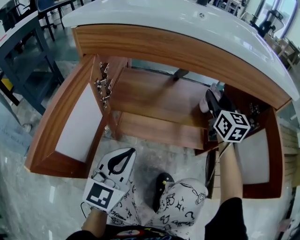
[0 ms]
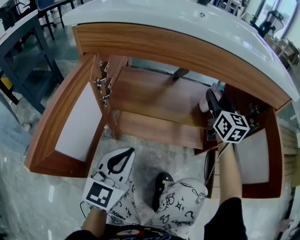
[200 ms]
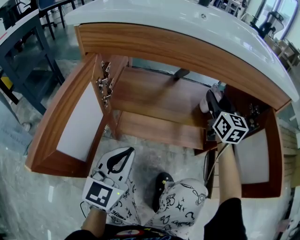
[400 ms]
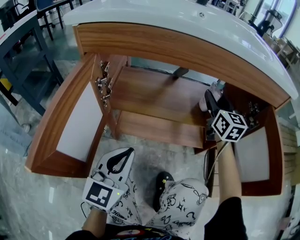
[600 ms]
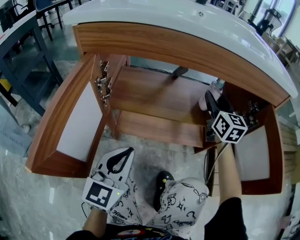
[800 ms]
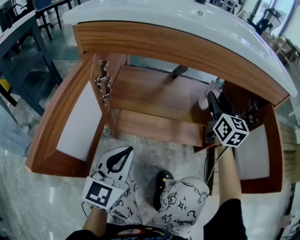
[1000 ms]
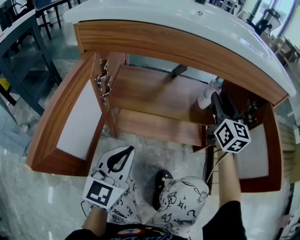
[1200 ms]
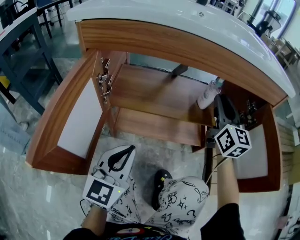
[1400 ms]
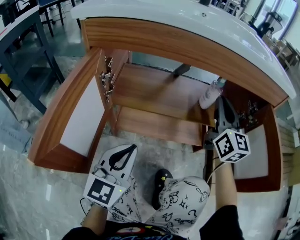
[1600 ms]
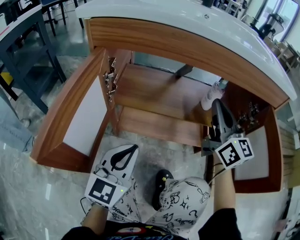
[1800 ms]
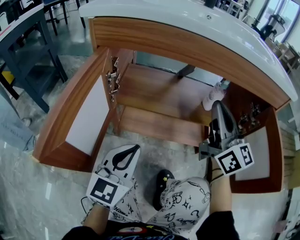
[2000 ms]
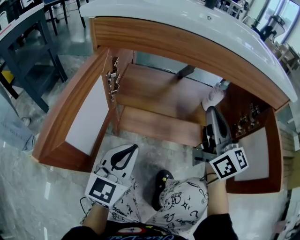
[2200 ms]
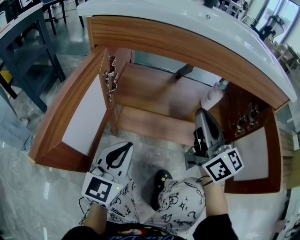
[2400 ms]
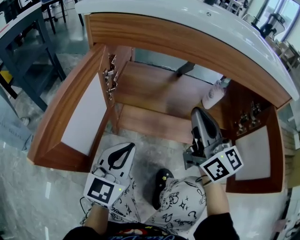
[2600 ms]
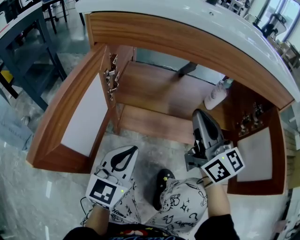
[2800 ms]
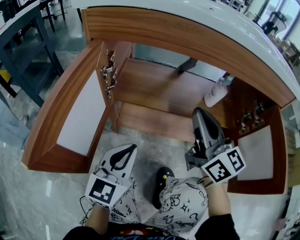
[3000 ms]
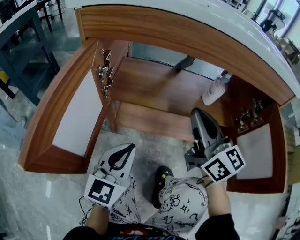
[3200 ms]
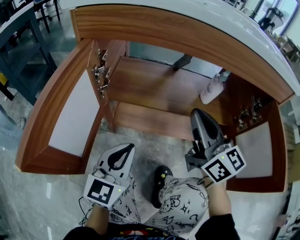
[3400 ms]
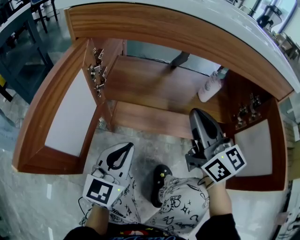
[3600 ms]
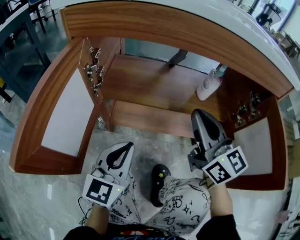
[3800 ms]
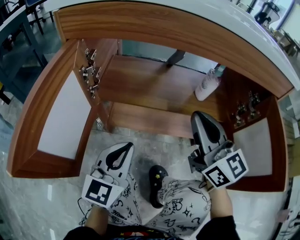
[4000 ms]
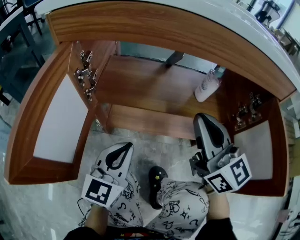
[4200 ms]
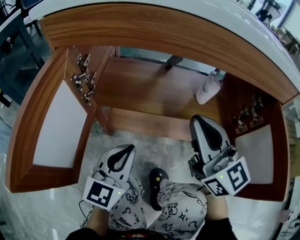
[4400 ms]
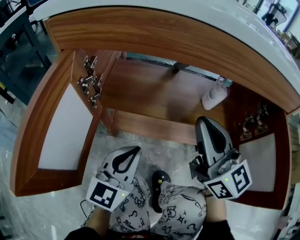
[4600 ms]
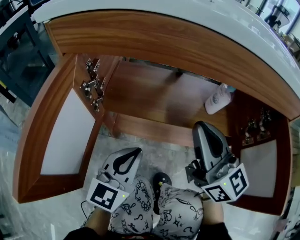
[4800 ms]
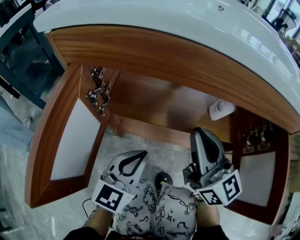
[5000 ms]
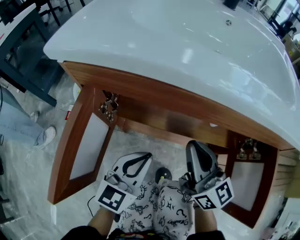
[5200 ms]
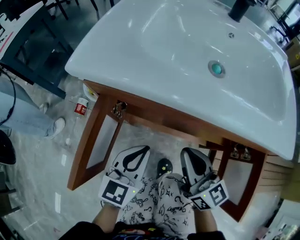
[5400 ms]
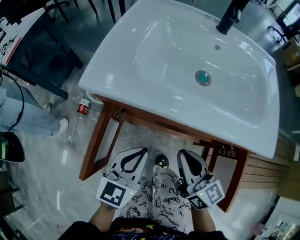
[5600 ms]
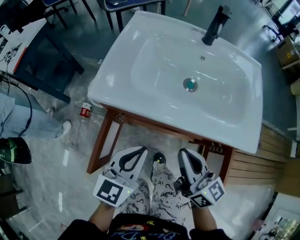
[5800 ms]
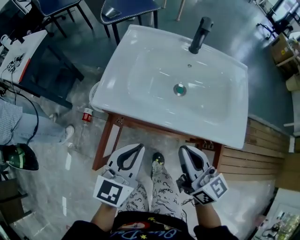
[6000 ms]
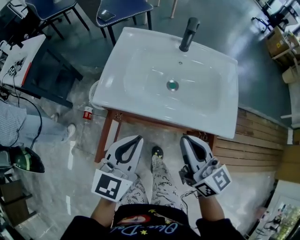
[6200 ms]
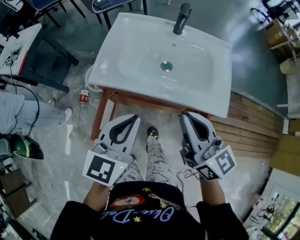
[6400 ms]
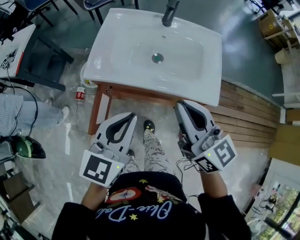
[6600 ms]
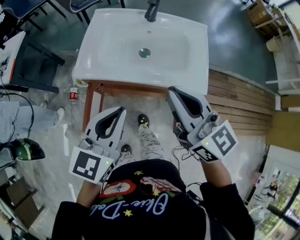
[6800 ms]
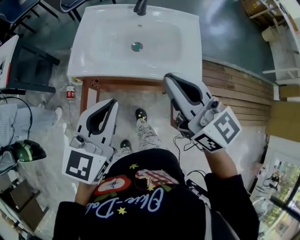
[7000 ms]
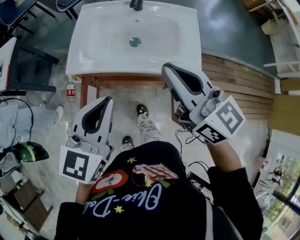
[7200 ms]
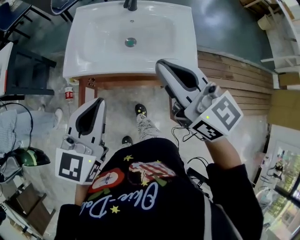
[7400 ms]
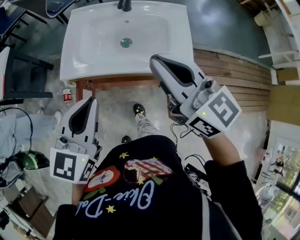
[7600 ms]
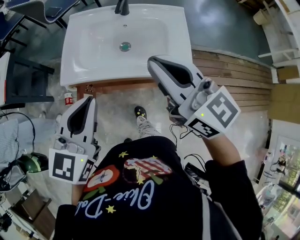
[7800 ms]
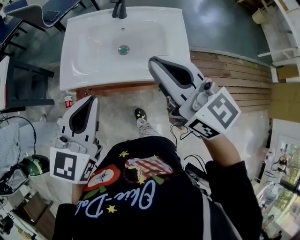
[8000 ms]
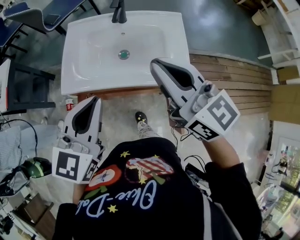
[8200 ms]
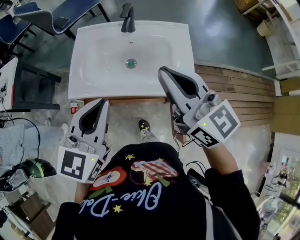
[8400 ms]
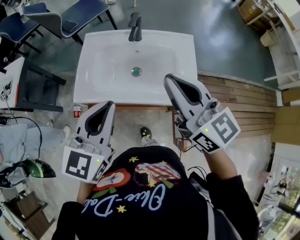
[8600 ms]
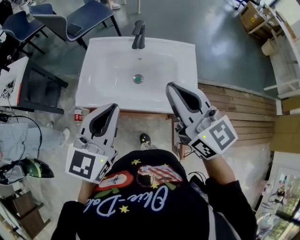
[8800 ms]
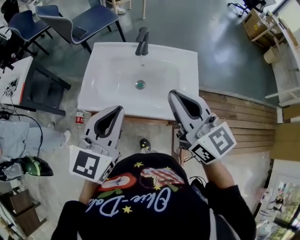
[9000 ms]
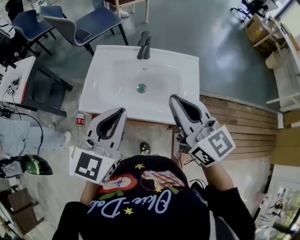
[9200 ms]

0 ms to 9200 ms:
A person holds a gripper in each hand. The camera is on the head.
0 ms to 1600 ms: The right gripper heads backward, covering roughly 10 cm, and closes up.
1600 ms to 3000 ms: The right gripper moves to the left and backward, some 15 cm, and turns by approximately 30 degrees.
3000 ms to 4600 ms: The grippers make only small movements.
4600 ms to 6200 ms: Both grippers travel together upward, roughly 35 cm. The right gripper turns by approximately 20 degrees.
6200 ms to 7600 ms: Both grippers move upward, about 15 cm.
7600 ms to 9200 ms: The right gripper travels forward by roughly 5 cm, while the left gripper travels forward and to the right by roughly 10 cm.

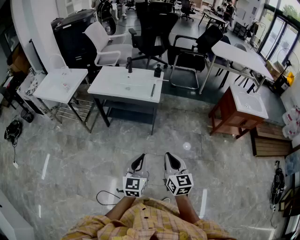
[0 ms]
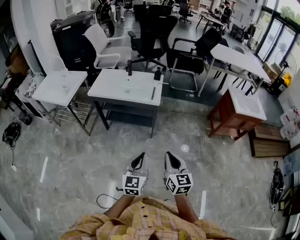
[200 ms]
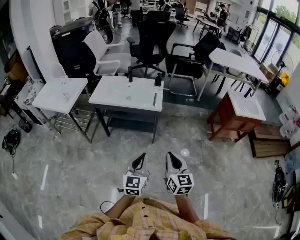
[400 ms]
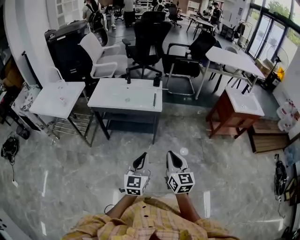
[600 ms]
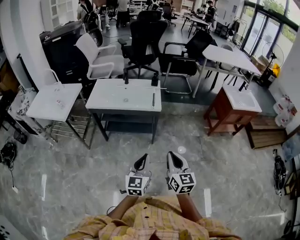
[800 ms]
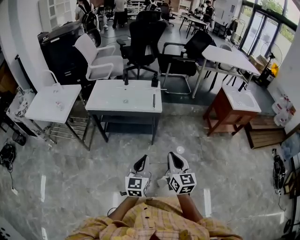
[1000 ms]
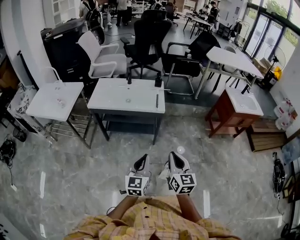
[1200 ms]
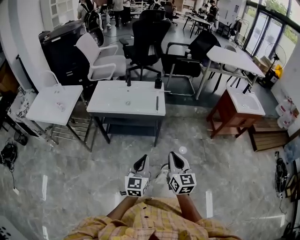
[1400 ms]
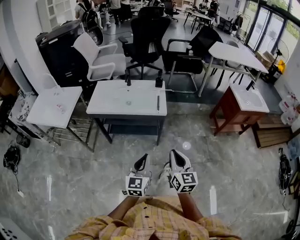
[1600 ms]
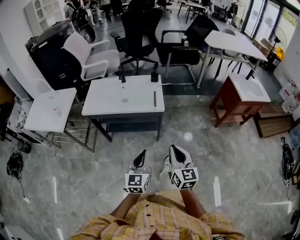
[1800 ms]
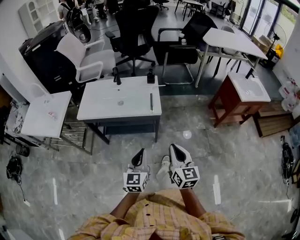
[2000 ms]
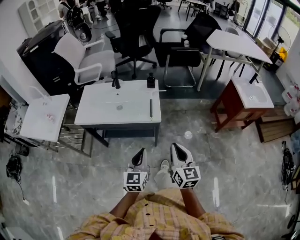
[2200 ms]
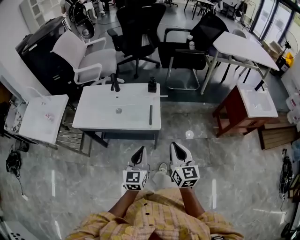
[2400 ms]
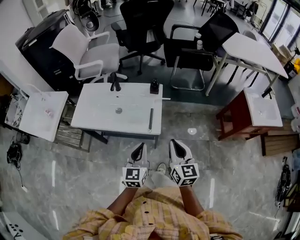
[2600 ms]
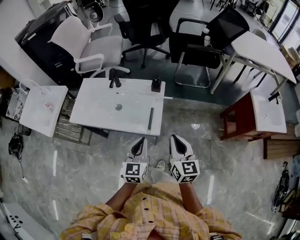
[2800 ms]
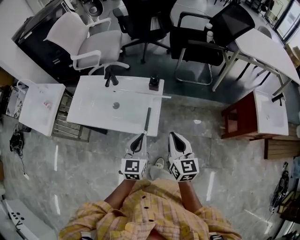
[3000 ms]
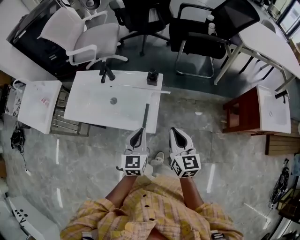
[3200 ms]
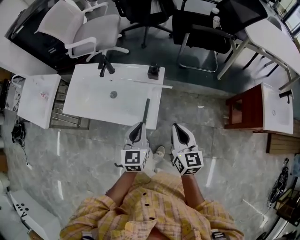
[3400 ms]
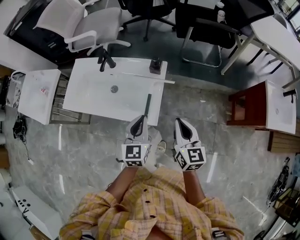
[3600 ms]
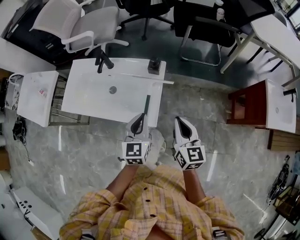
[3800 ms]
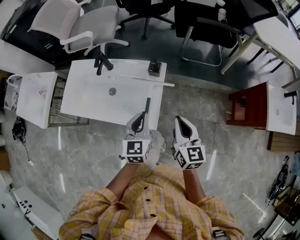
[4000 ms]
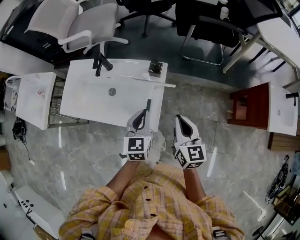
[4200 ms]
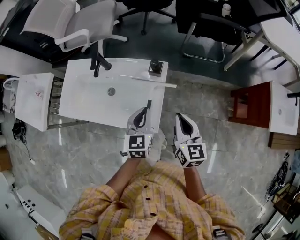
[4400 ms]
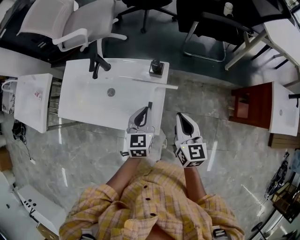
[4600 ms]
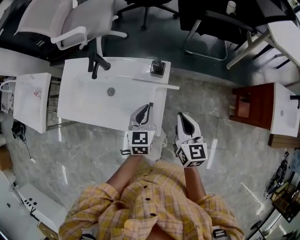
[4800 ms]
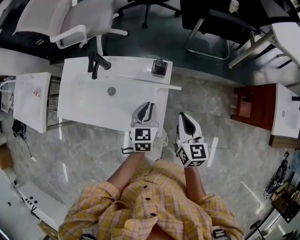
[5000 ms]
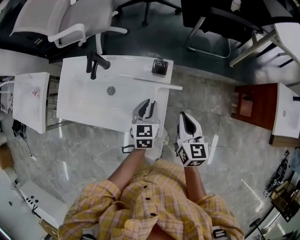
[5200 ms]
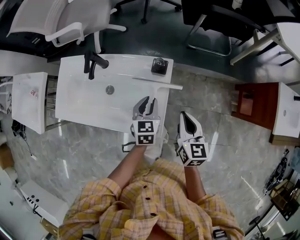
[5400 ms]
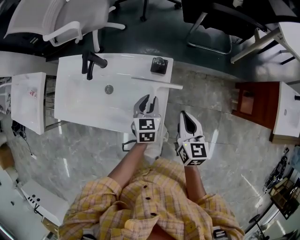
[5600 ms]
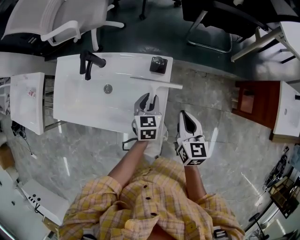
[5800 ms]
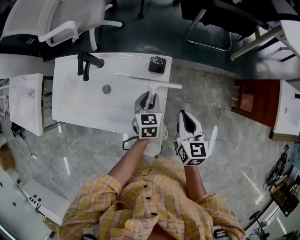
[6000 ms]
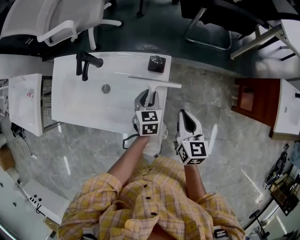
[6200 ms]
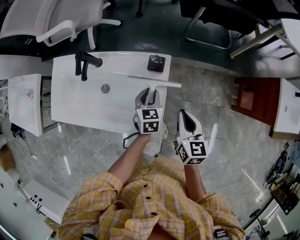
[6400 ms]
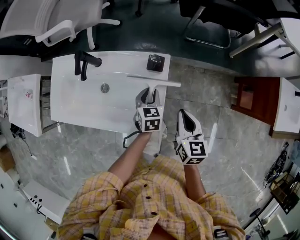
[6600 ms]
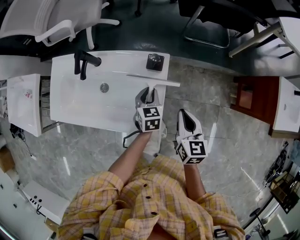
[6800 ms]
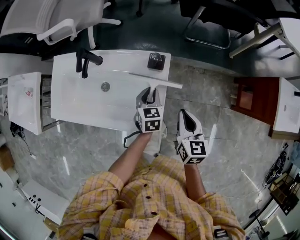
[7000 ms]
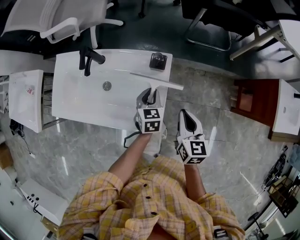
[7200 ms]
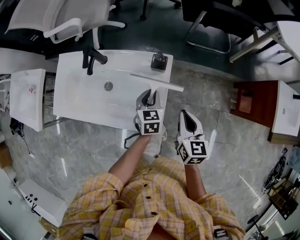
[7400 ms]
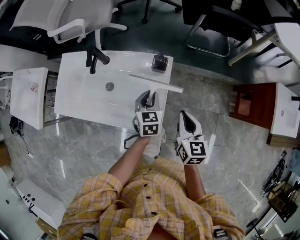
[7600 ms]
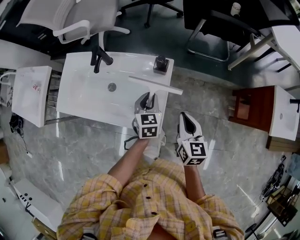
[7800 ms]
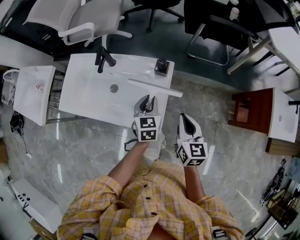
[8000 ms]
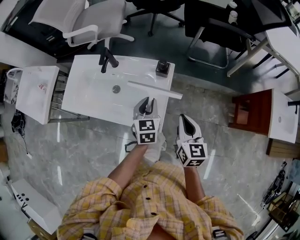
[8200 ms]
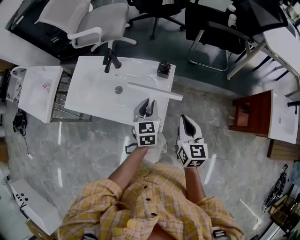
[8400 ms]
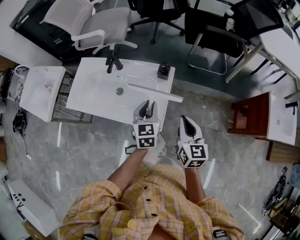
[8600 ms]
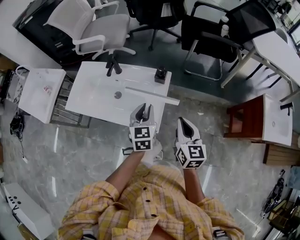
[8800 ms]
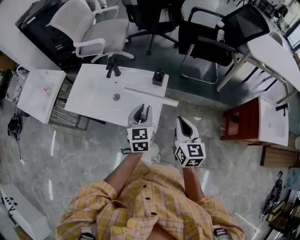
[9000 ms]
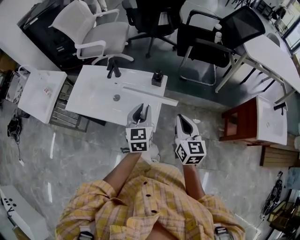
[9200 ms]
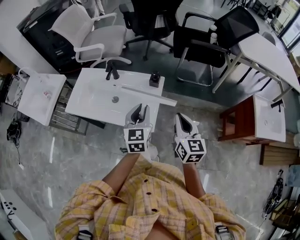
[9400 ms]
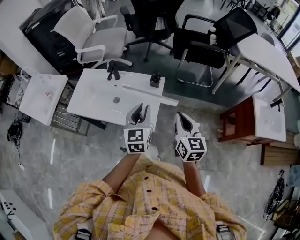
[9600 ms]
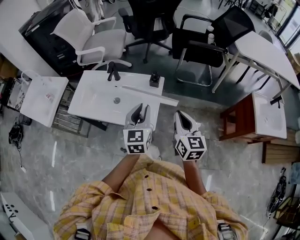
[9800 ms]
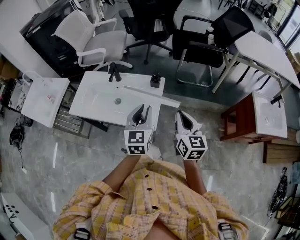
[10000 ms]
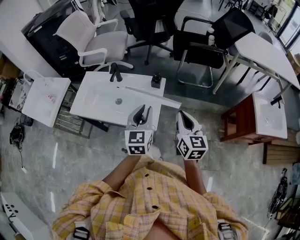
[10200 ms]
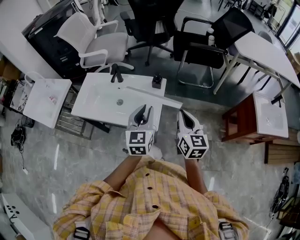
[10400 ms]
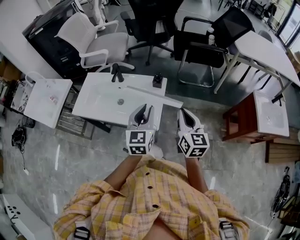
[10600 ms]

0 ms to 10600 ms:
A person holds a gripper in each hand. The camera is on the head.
0 ms to 1600 ms: The two grippers go roughly 15 cm forward and to the left.
1600 ms to 3000 ms: The two grippers travel together, forward, approximately 40 cm.
3000 ms to 4600 ms: The grippers both shift forward and downward by some 15 cm.
4600 ms to 6000 ms: The left gripper shifts roughly 15 cm downward and forward, and opens its fingers; the right gripper moves downward, about 5 cm.
6000 ms to 7600 ms: The grippers make only small movements.
7600 ms to 9000 ms: The grippers both shift upward and backward by about 15 cm.
9000 ms to 10600 ms: The right gripper shifts approximately 5 cm upward; the left gripper travels upward and backward by roughly 10 cm.

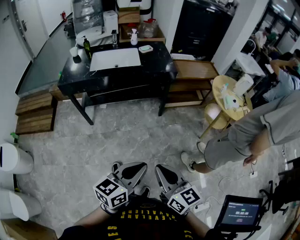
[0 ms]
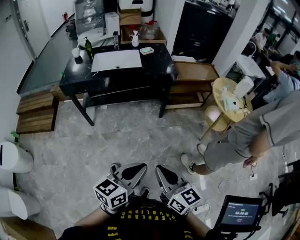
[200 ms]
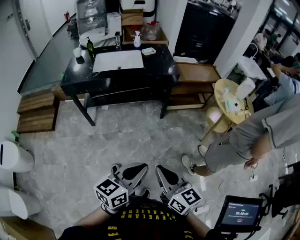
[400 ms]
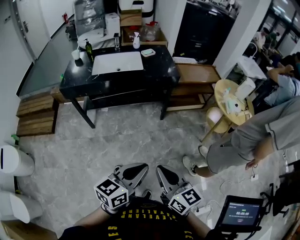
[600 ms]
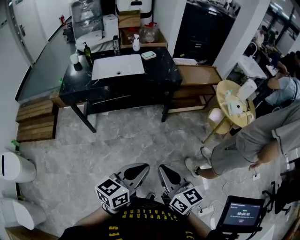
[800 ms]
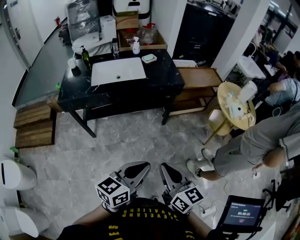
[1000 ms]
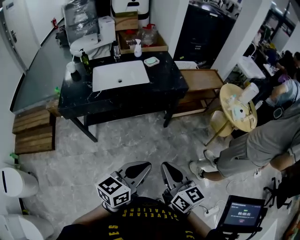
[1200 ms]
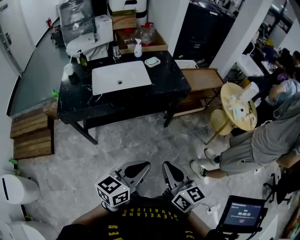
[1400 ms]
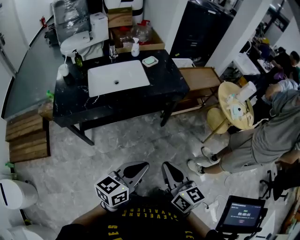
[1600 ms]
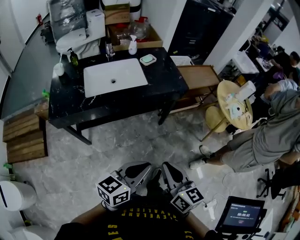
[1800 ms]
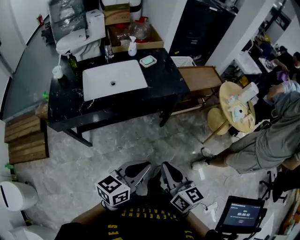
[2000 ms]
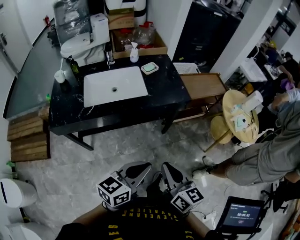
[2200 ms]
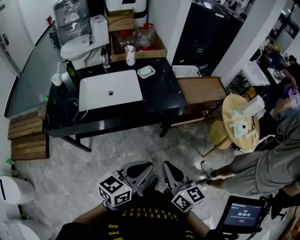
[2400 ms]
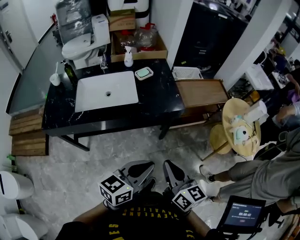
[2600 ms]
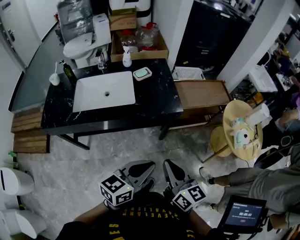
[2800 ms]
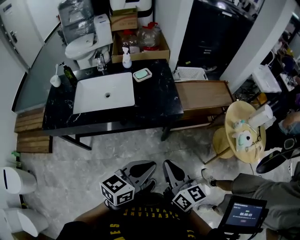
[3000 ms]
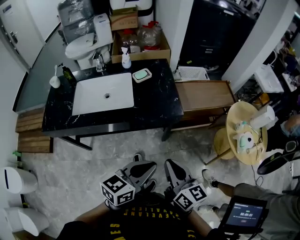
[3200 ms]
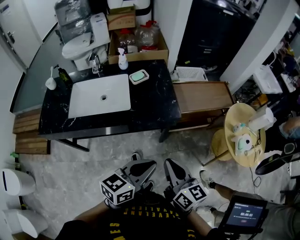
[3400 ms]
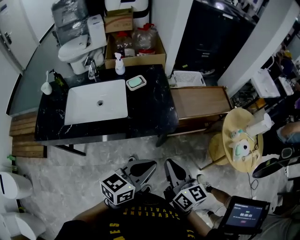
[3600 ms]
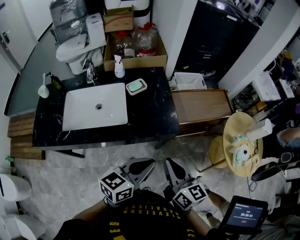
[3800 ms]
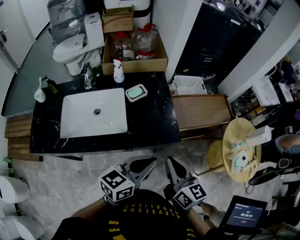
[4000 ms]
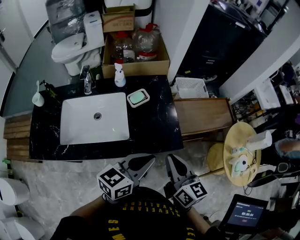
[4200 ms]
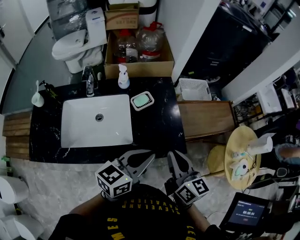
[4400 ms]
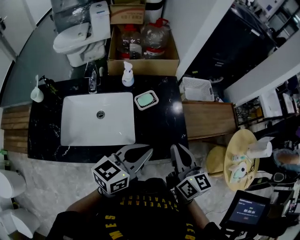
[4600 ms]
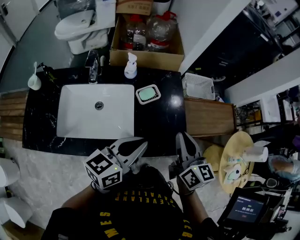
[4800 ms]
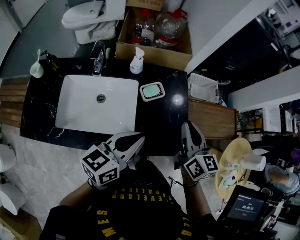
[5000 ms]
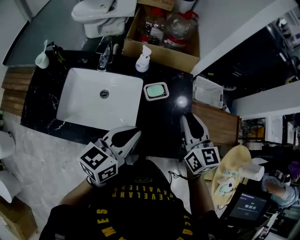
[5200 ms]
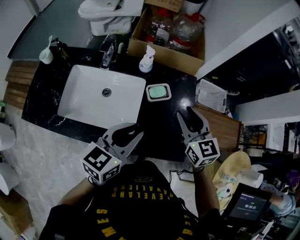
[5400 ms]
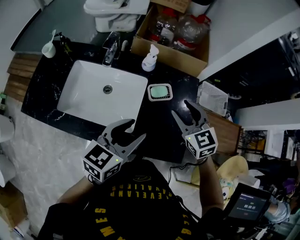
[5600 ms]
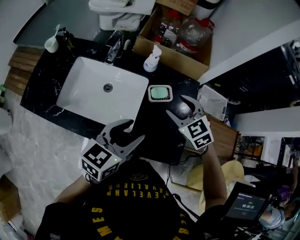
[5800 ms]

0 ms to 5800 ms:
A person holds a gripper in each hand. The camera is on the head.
0 ms to 1400 ms: The grippers both shift forward and to the left by approximately 25 cm.
1400 ms to 2800 ms: The two grippers go roughly 25 cm forward and to the right.
2800 ms to 4400 ms: The two grippers go some 30 cm forward.
4400 ms to 5800 ms: The left gripper changes place by roughly 10 cm, swivels some 30 degrees, and opens up; the right gripper shifts by about 25 cm, points its fingers roughly 30 degrees further downward, and opens its fingers.
